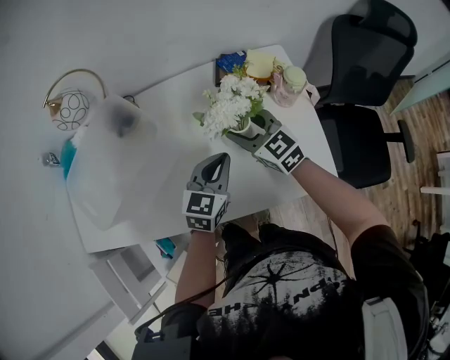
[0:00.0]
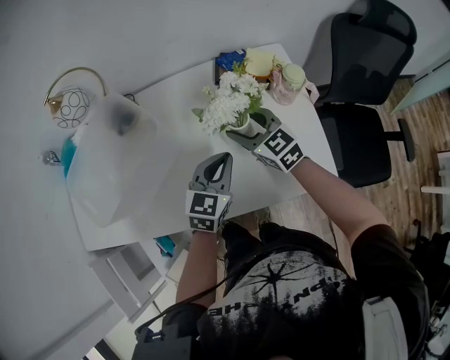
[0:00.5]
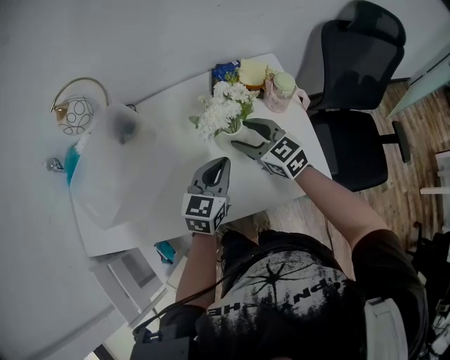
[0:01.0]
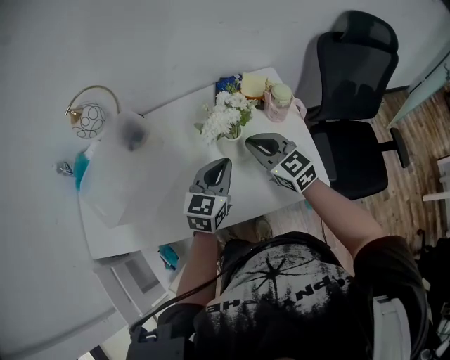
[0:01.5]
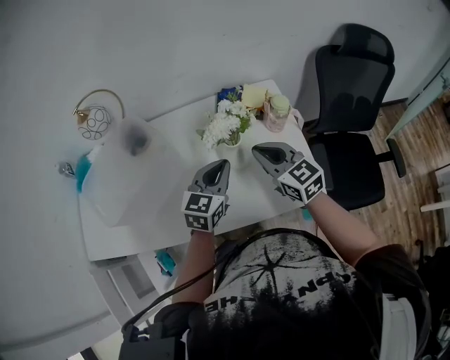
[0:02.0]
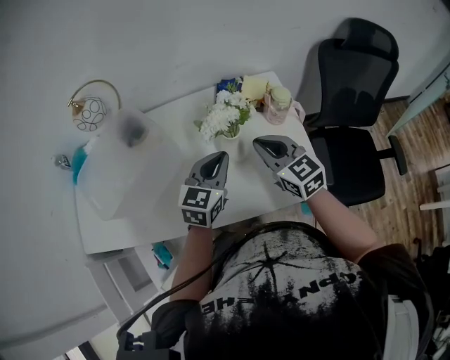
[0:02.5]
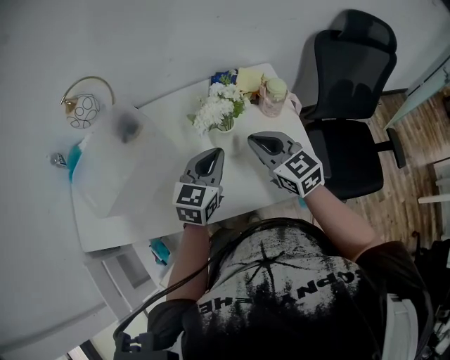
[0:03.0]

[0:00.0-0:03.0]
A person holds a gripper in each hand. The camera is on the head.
0:00.0 to 0:01.5: The right gripper heads backward, covering some 5 cm, and closes its fingers. The left gripper moves upward, some 5 cm.
0:01.5 to 0:03.0: The grippers make only small movements.

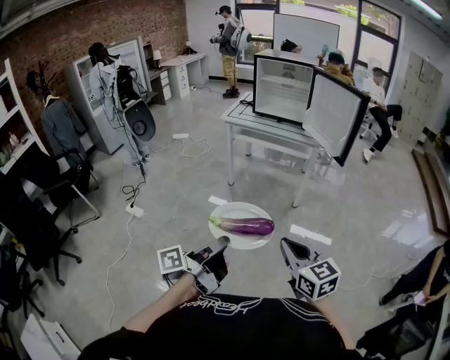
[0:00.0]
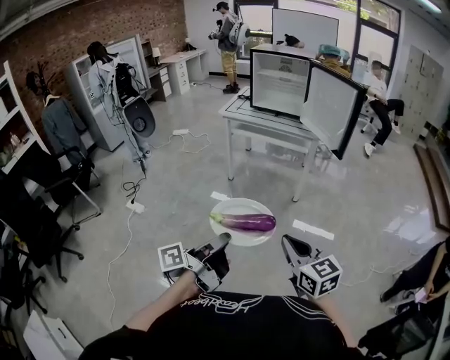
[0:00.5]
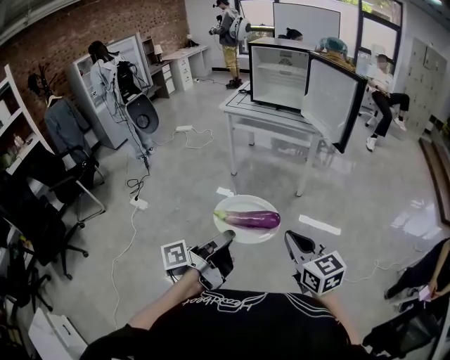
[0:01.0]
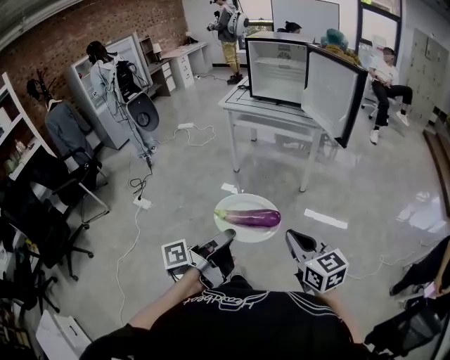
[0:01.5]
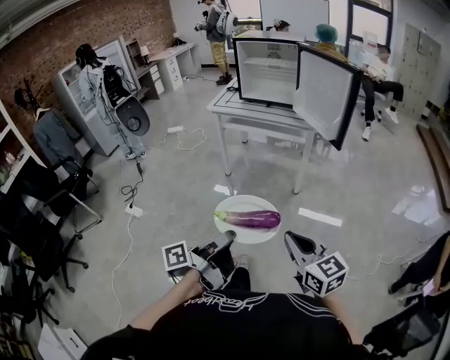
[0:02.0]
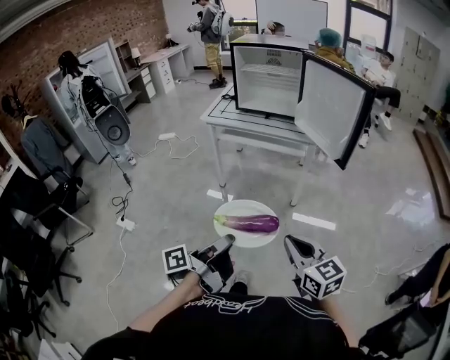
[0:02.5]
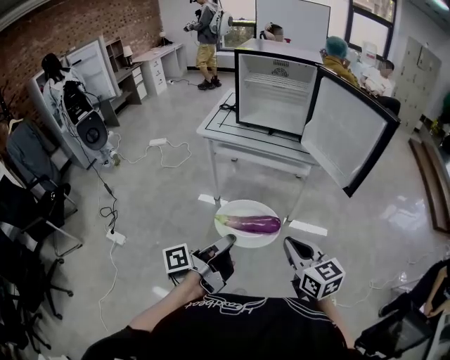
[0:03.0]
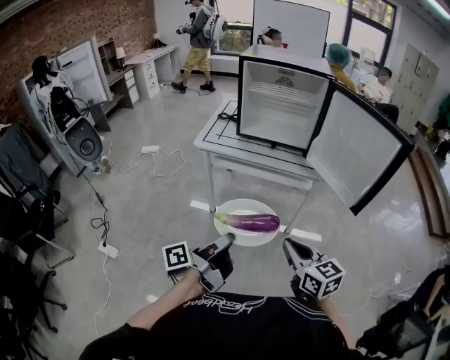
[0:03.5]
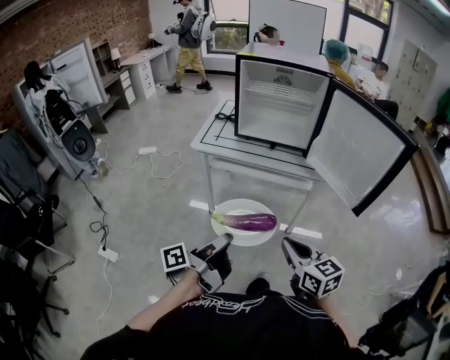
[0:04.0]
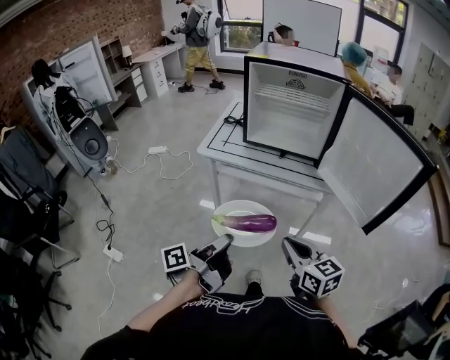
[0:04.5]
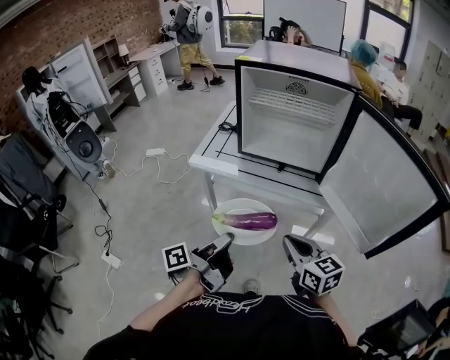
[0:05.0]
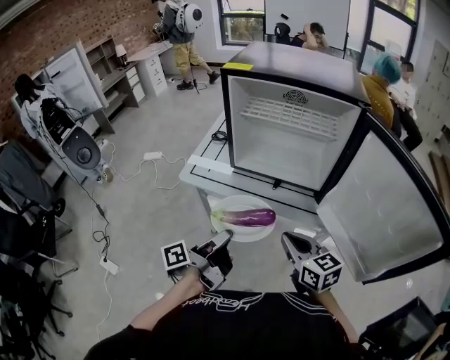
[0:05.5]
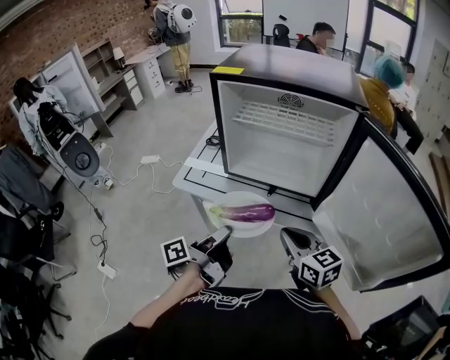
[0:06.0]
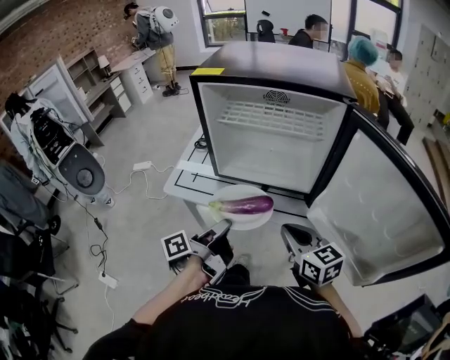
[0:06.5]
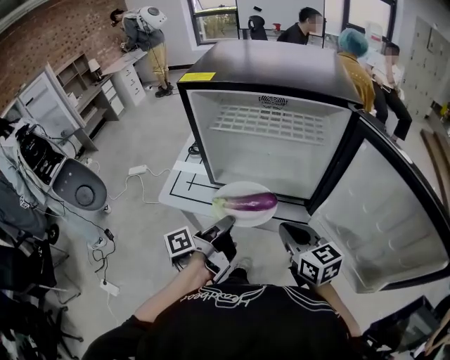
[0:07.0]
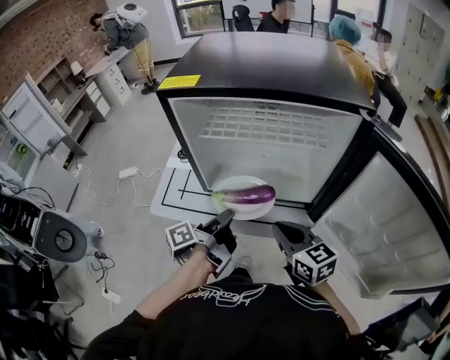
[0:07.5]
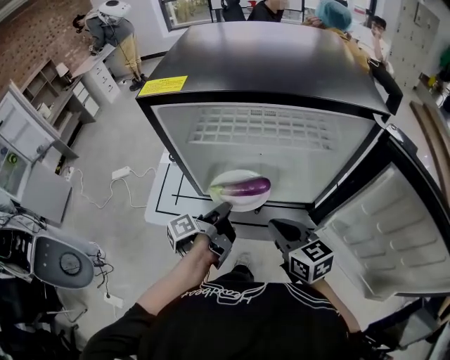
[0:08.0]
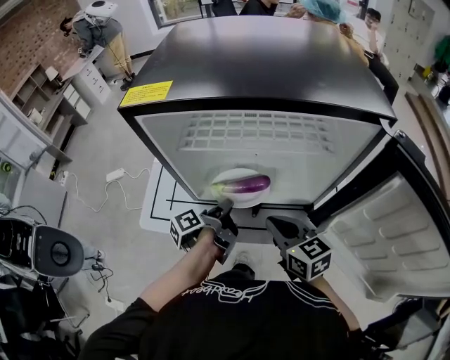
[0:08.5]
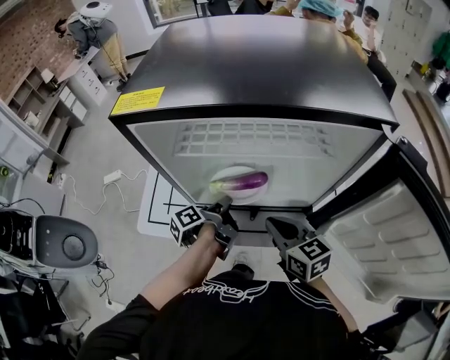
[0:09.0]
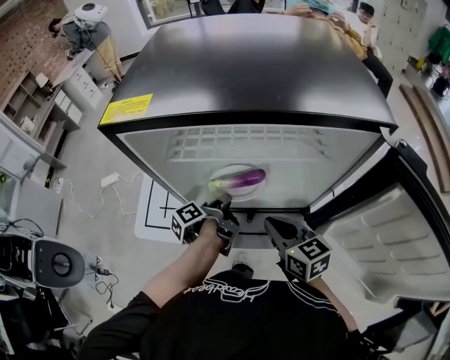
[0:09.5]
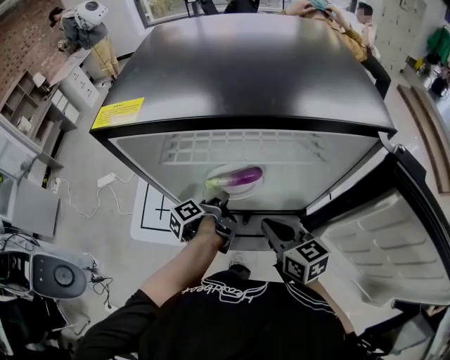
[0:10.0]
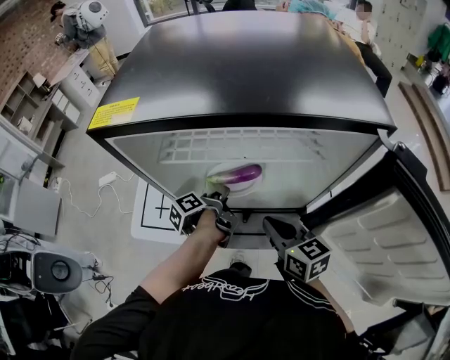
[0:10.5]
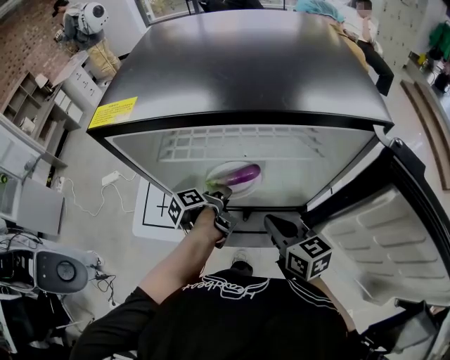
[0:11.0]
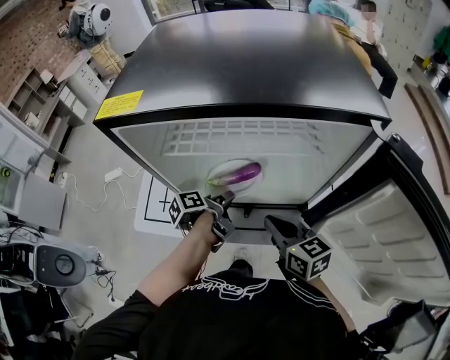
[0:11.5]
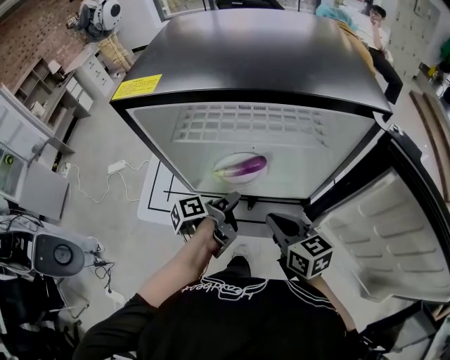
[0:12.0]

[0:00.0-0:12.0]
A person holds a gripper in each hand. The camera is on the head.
0:00.0 to 0:02.0: The right gripper moves some 10 cm.
0:02.0 to 0:04.0: The right gripper moves roughly 35 cm.
0:04.0 to 0:06.0: The right gripper shifts by approximately 35 cm.
0:06.0 to 0:08.0: The right gripper ends up approximately 15 cm from where it was.

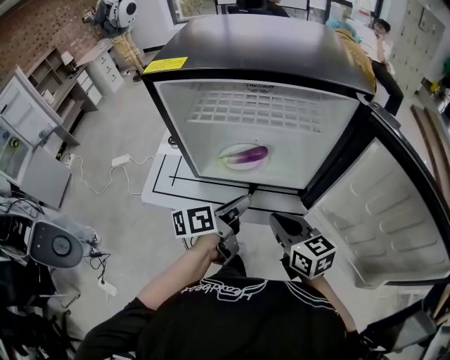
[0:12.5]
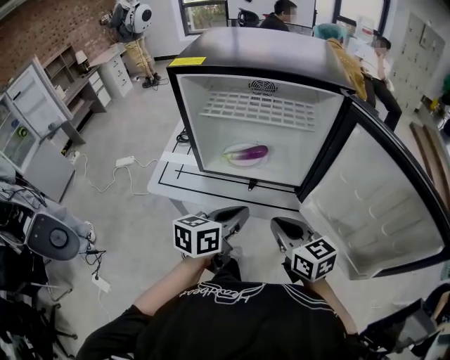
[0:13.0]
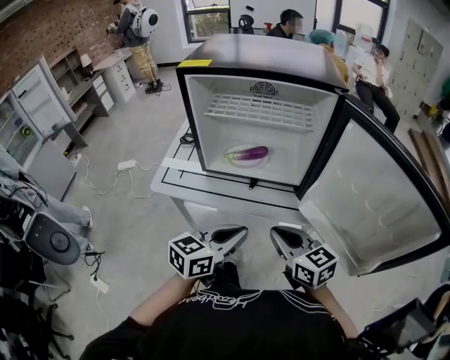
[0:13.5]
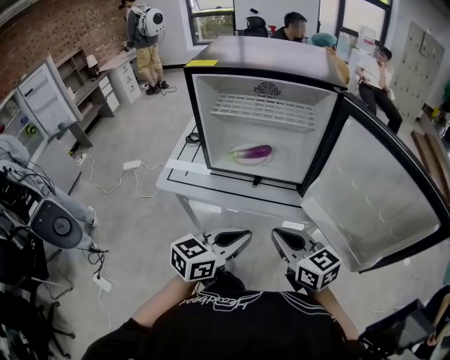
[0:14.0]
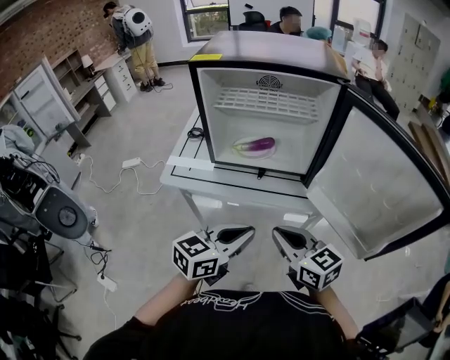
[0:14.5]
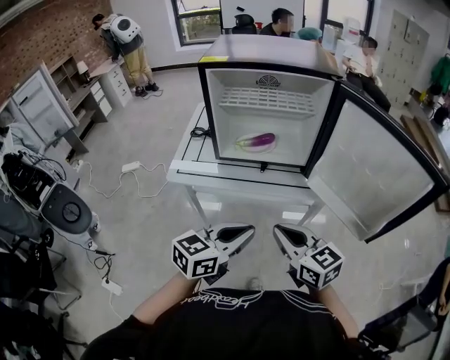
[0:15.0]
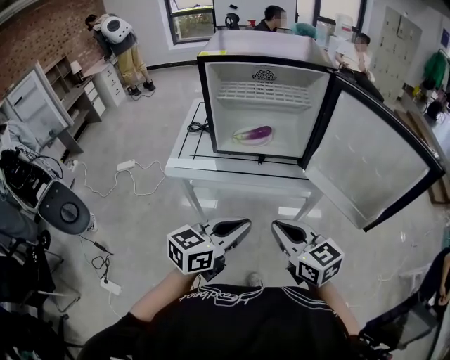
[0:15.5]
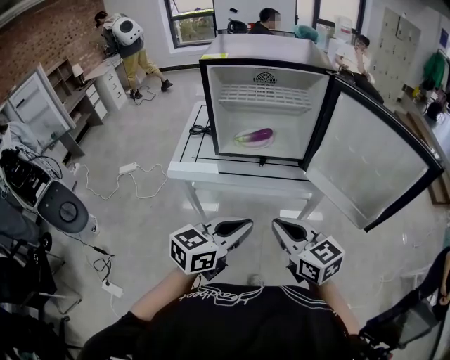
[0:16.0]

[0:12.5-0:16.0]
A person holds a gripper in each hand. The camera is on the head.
0:12.5 to 0:14.5: The right gripper ends up approximately 15 cm from where it was.
0:14.5 to 0:16.0: The right gripper changes place by about 10 cm.

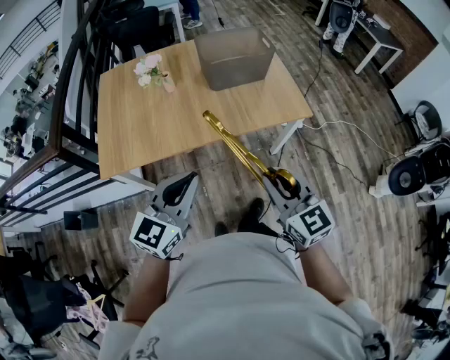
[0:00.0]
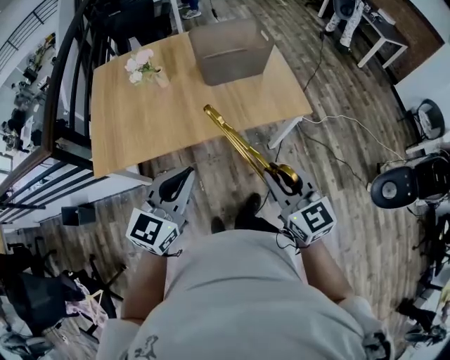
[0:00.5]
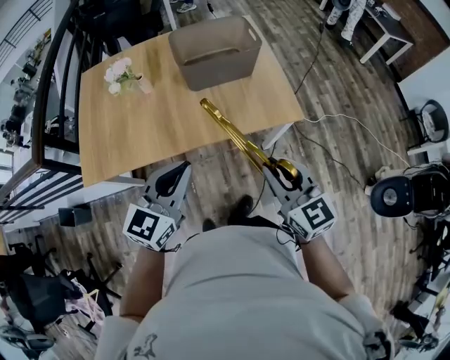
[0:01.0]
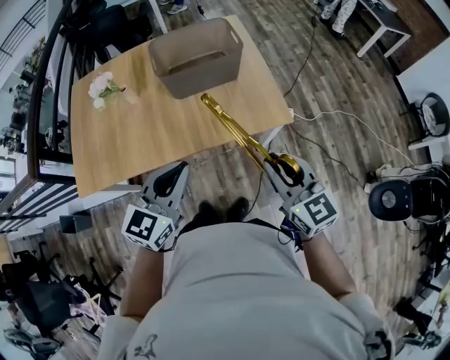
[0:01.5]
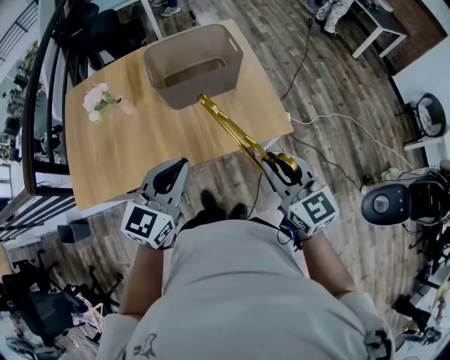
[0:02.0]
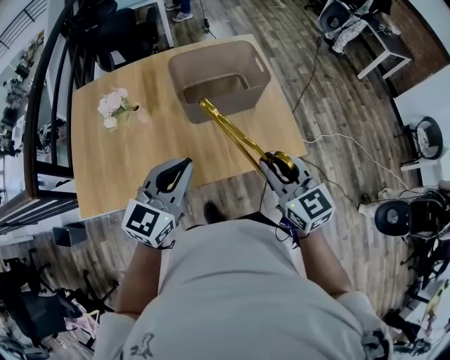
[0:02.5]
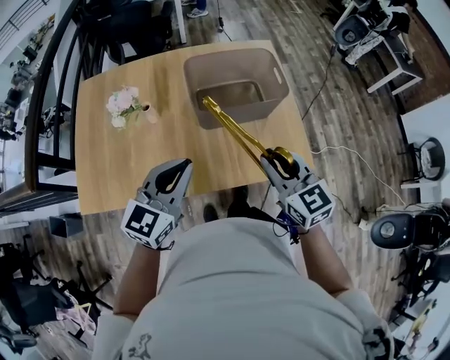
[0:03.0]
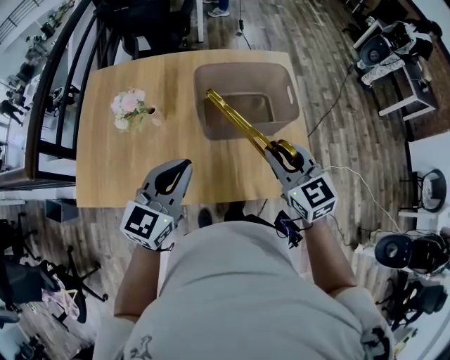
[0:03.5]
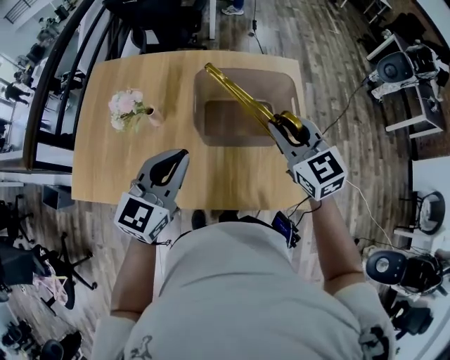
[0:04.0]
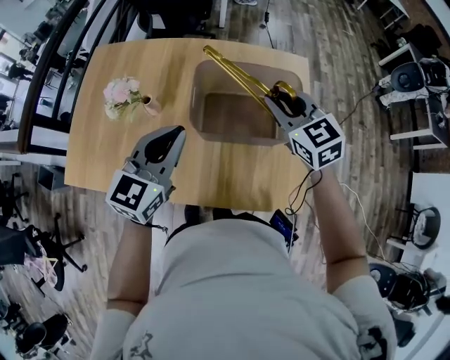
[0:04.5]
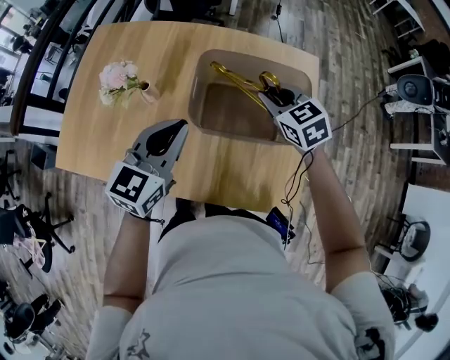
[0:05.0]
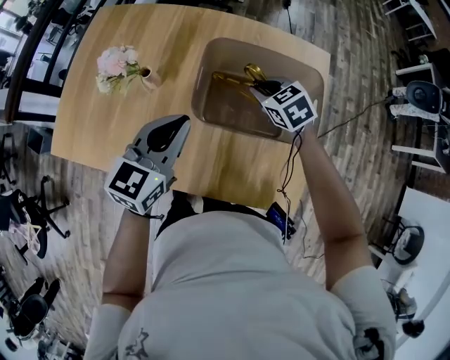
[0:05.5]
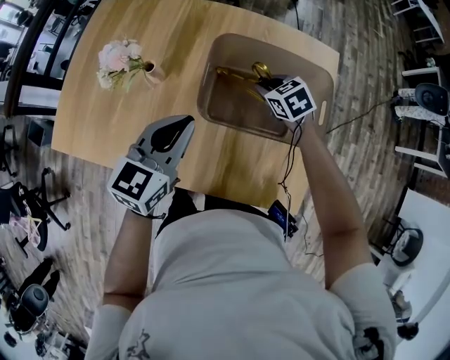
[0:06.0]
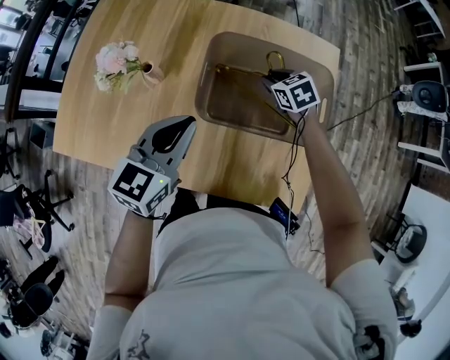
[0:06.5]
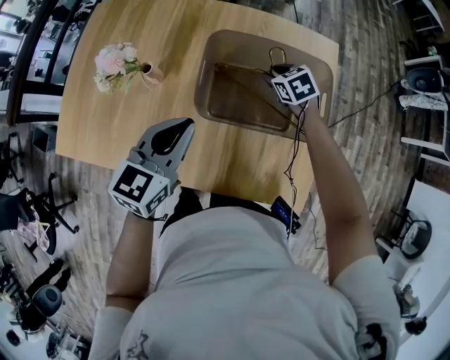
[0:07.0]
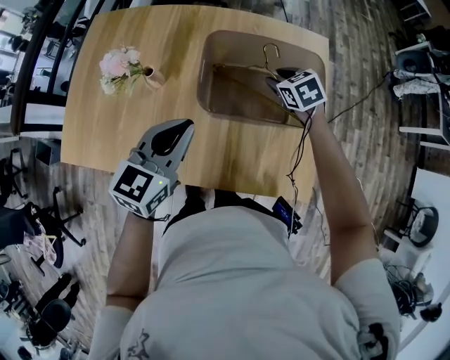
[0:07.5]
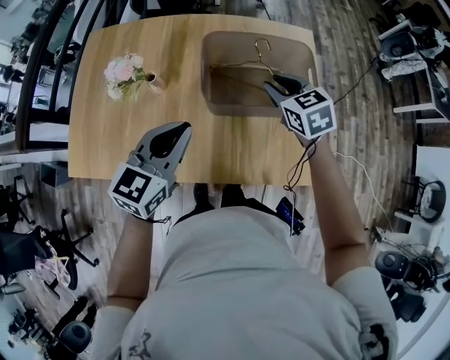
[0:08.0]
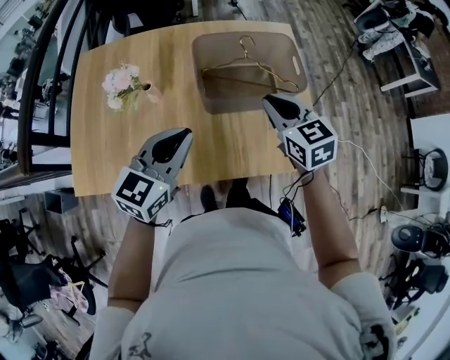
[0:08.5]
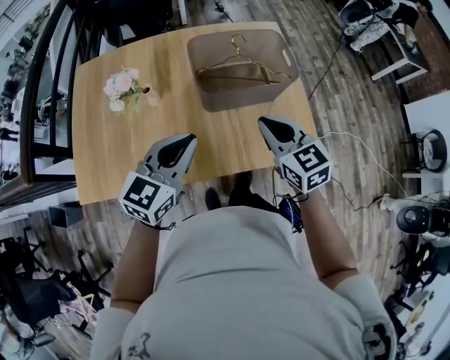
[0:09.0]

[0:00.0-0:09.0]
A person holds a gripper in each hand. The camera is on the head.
0:00.0 to 0:02.0: Both grippers move forward and to the right, about 30 cm.
0:02.0 to 0:04.5: The right gripper shifts about 40 cm forward, and turns by roughly 30 degrees, while the left gripper moves forward, approximately 25 cm, and changes its angle by roughly 20 degrees.
0:04.5 to 0:07.0: The left gripper is displaced downward by about 10 cm, while the right gripper travels downward and forward by approximately 30 cm, and tilts its fingers approximately 30 degrees downward.
0:07.0 to 0:09.0: The left gripper goes approximately 15 cm backward and upward, and turns by roughly 20 degrees, while the right gripper moves backward and upward, roughly 40 cm, tips its fingers upward by approximately 30 degrees, and closes up.
